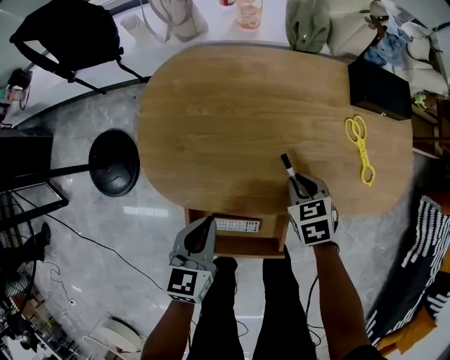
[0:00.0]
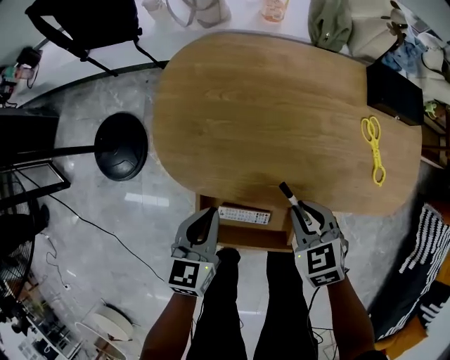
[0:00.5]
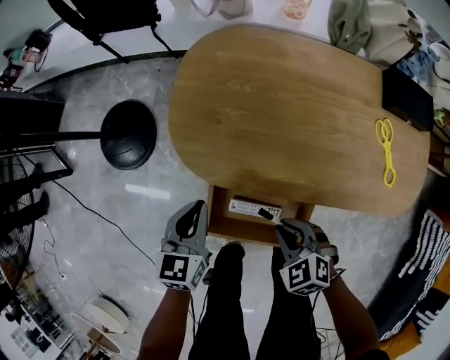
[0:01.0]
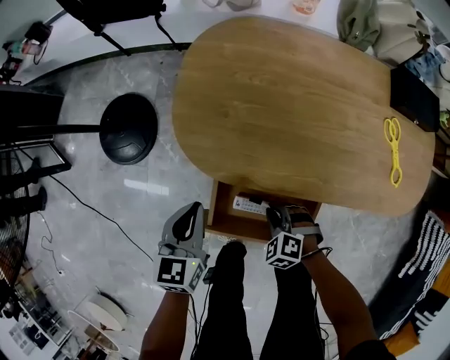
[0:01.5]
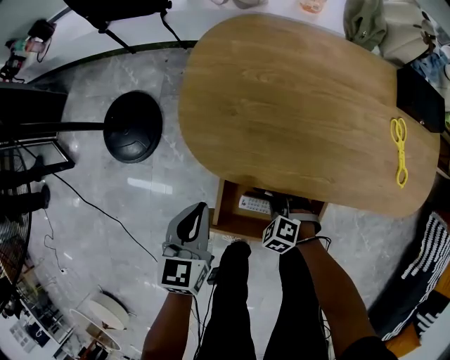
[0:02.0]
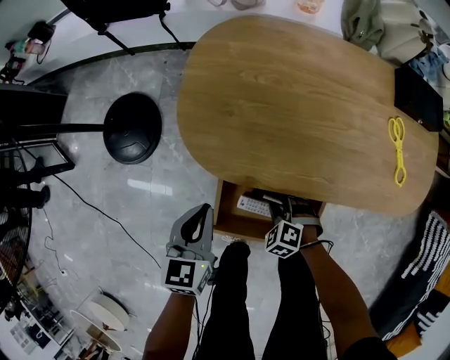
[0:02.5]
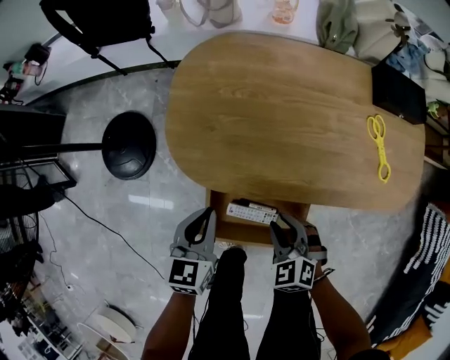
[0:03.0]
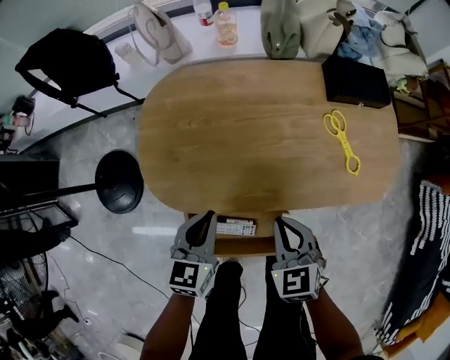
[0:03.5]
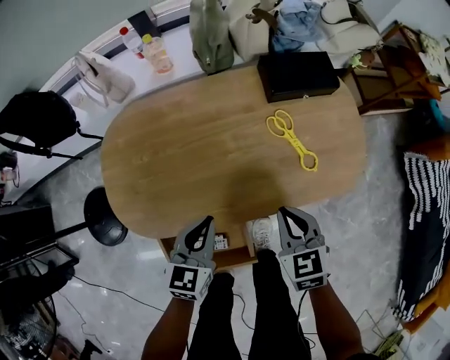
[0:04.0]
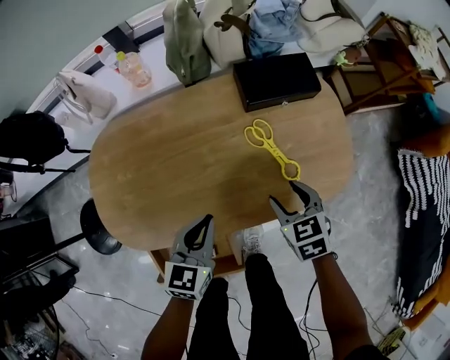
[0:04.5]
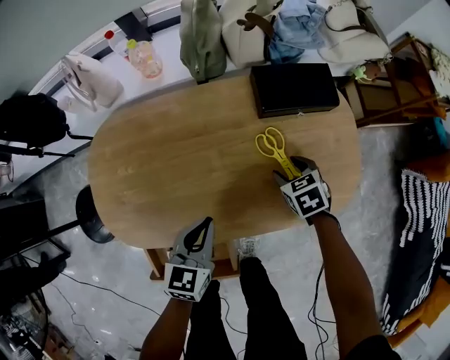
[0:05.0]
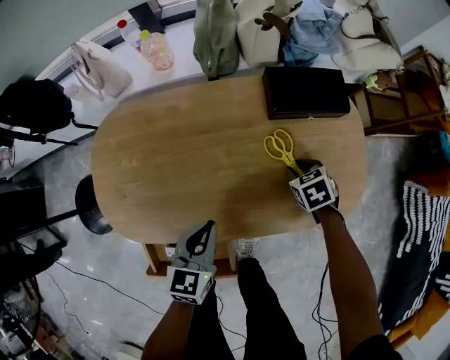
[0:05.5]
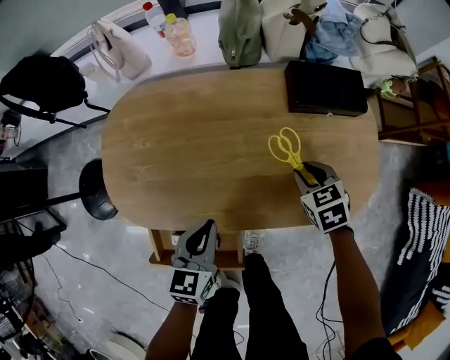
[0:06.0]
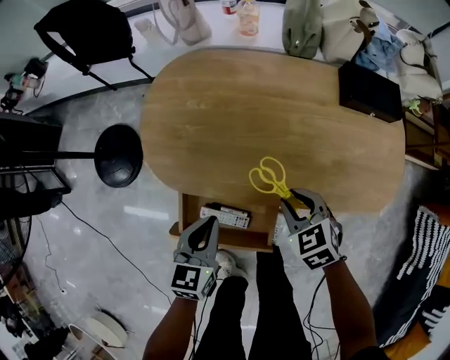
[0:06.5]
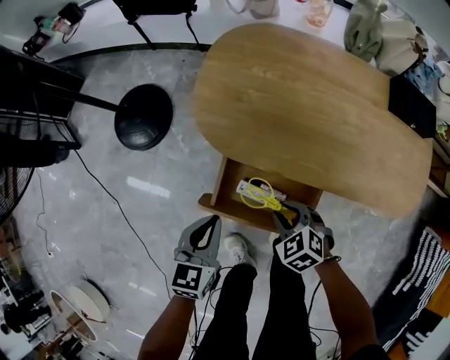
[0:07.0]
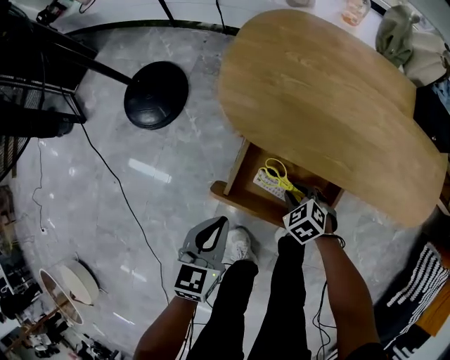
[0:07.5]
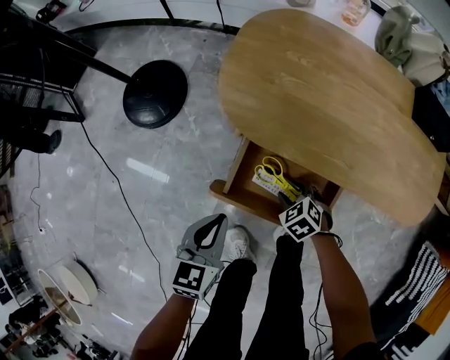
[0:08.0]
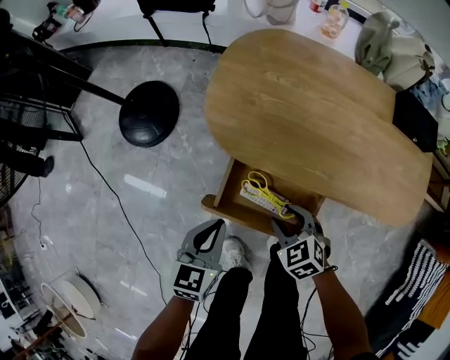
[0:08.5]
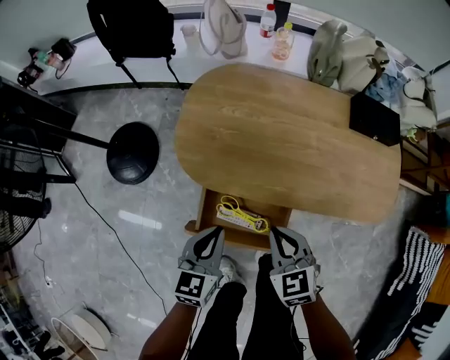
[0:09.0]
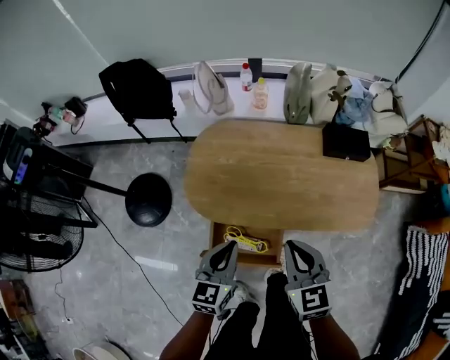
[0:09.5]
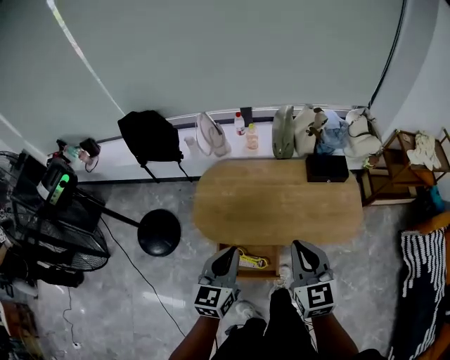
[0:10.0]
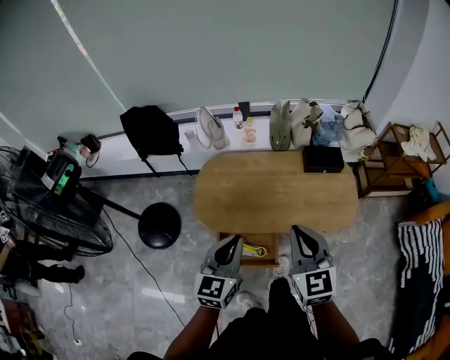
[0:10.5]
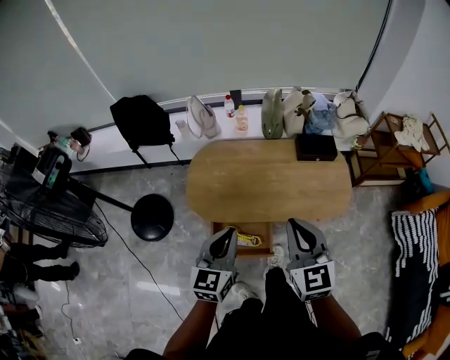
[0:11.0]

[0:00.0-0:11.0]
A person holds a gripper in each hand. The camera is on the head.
0:00.0 to 0:02.0: The right gripper shifts about 25 cm to the left, downward and backward, and twists approximately 50 degrees counterclockwise, seen from behind, while the left gripper moves to the left, roughly 15 cm.
0:02.0 to 0:03.5: The right gripper travels upward and to the right by roughly 30 cm, and rolls clockwise, seen from behind, by about 40 degrees, while the left gripper heads to the right, covering some 15 cm.
0:03.5 to 0:05.5: The left gripper moves to the right and forward, roughly 20 cm. The right gripper heads to the right, forward and downward, covering about 35 cm, and swivels some 30 degrees.
0:05.5 to 0:07.5: The two grippers travel together, about 40 cm. The left gripper turns by about 30 degrees, while the right gripper twists roughly 40 degrees counterclockwise, seen from behind.
0:07.5 to 0:09.0: The left gripper goes approximately 15 cm to the right, upward and forward, while the right gripper shifts about 25 cm upward, and turns by roughly 40 degrees.
0:09.0 to 0:11.0: Both grippers move upward, about 35 cm. The right gripper rotates about 30 degrees; the left gripper changes its angle by roughly 20 degrees.

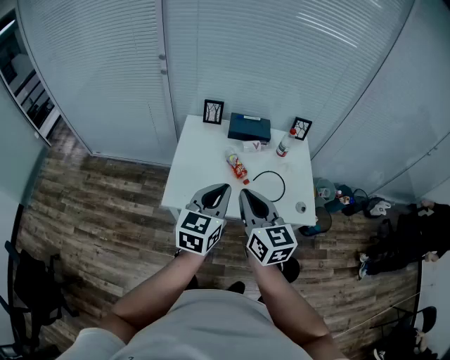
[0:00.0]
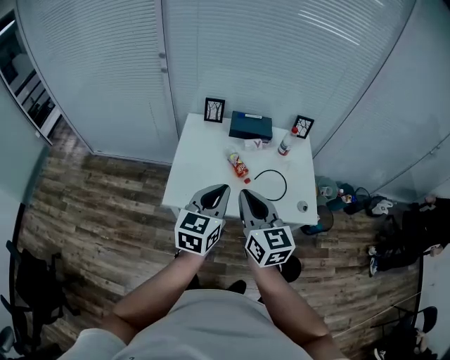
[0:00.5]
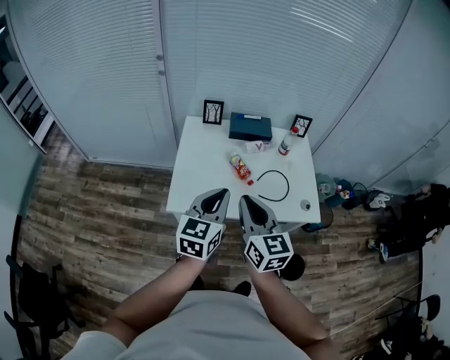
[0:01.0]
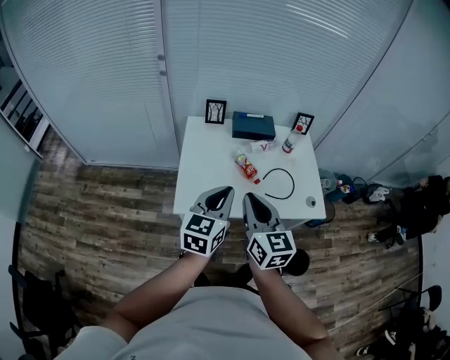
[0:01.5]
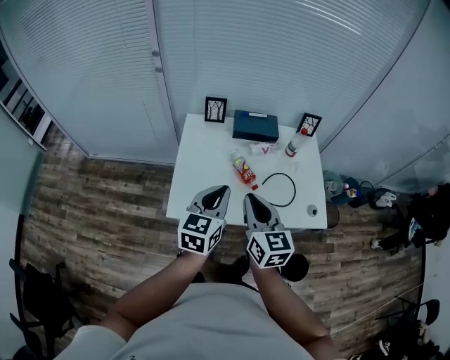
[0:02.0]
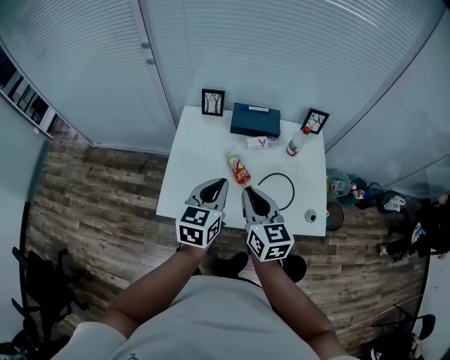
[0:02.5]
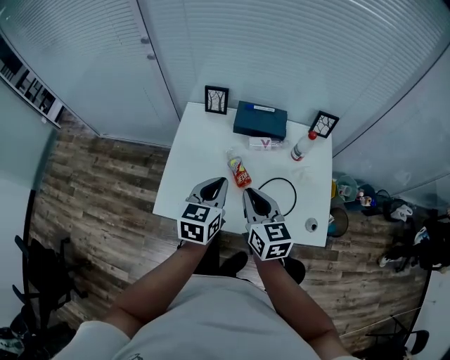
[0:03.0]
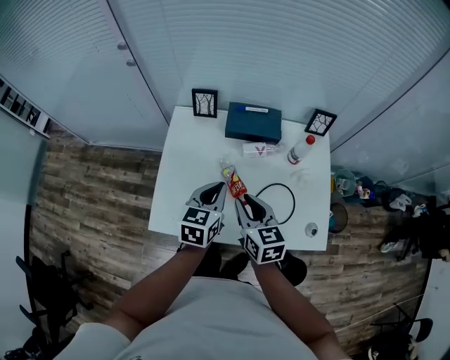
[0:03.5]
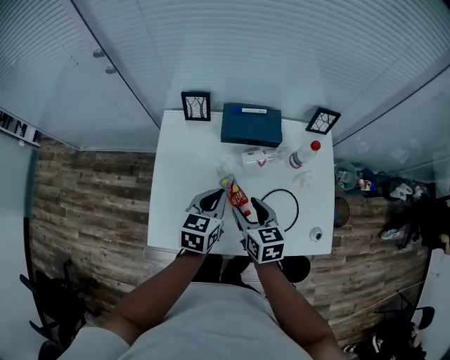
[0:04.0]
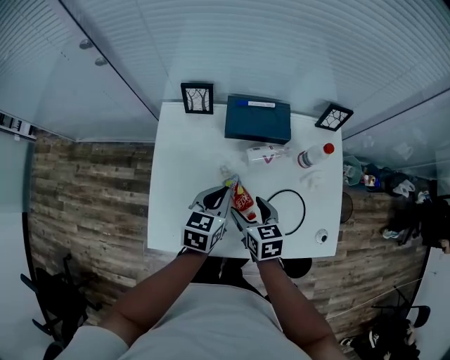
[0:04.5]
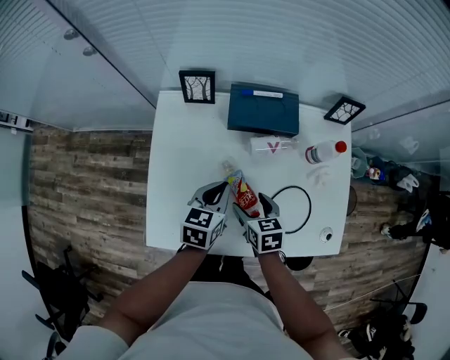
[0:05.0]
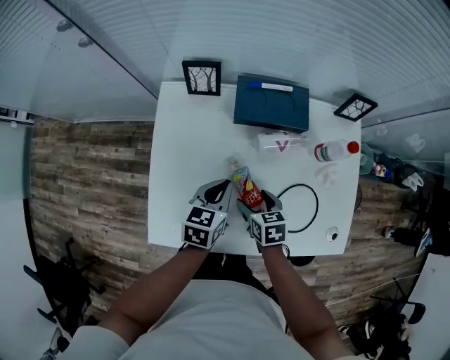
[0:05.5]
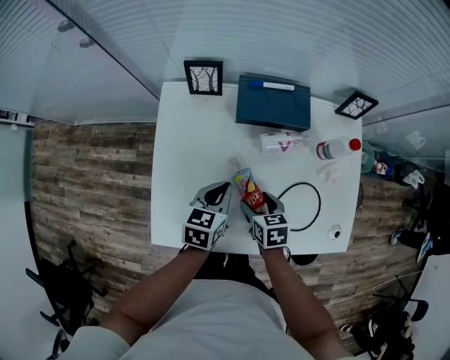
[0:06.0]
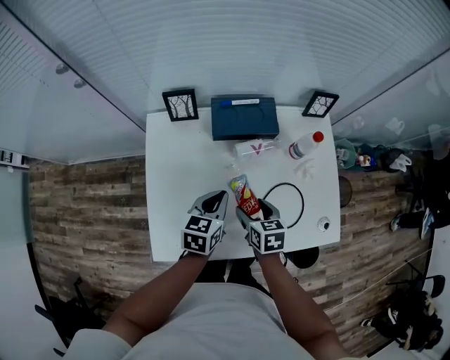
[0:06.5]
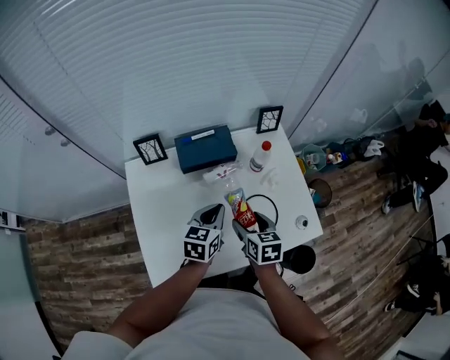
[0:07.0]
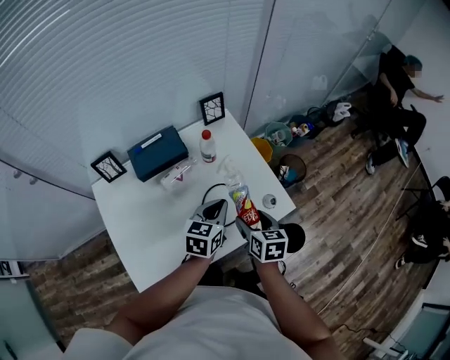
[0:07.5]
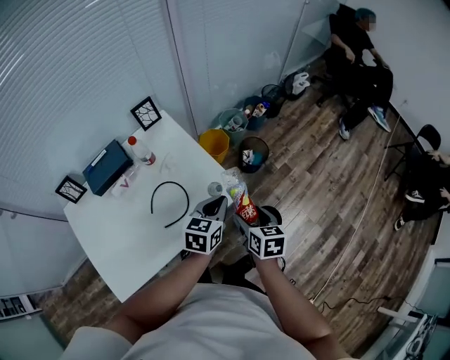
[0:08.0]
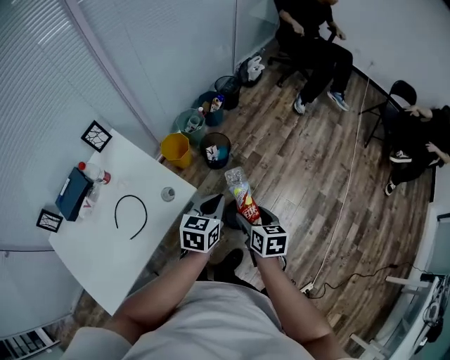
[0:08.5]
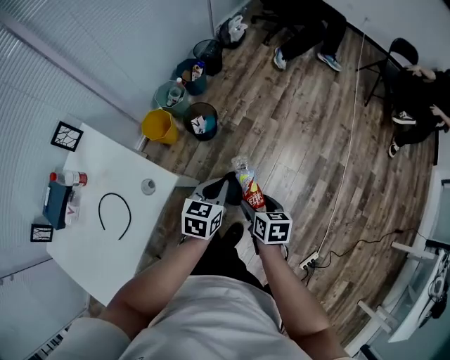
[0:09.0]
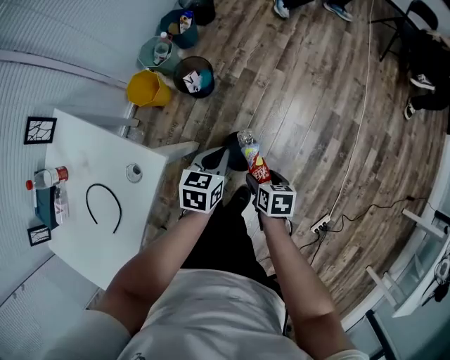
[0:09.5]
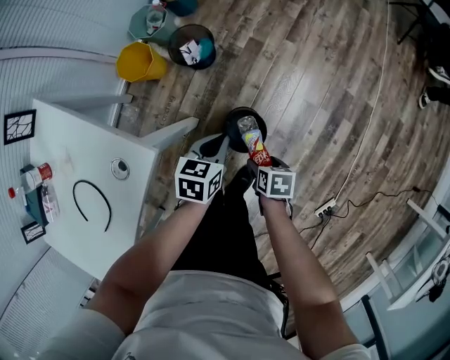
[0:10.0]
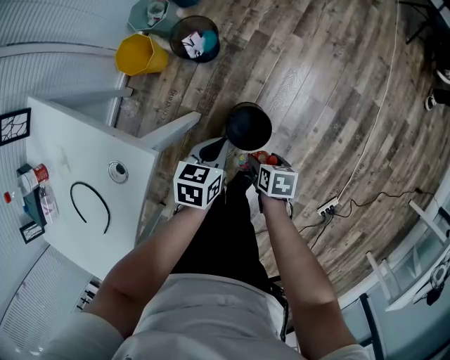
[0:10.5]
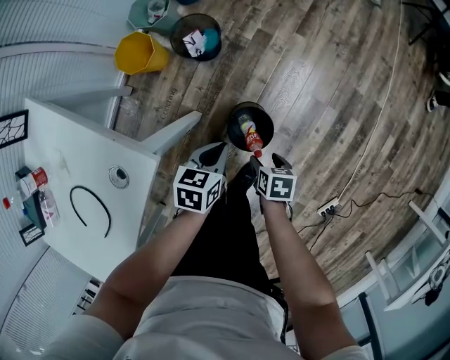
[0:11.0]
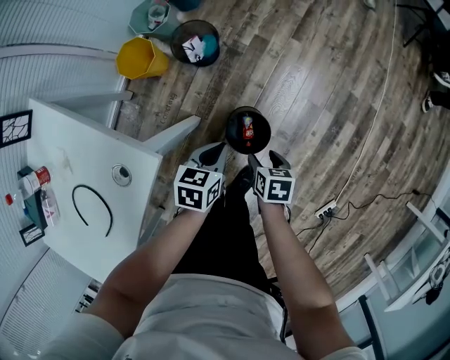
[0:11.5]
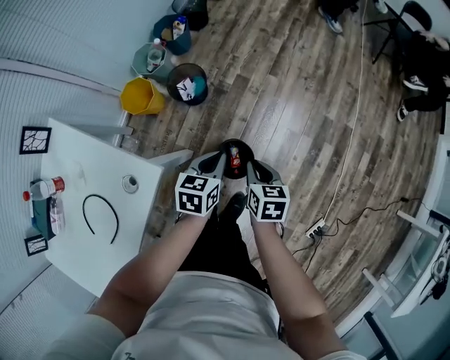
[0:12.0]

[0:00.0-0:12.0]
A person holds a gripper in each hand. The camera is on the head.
0:00.0 to 0:02.0: Both grippers move forward and downward, roughly 10 cm.
0:02.0 to 0:04.0: The grippers both shift forward and downward by some 25 cm. The right gripper rotates some 20 degrees, and opens up.
0:04.0 to 0:06.0: Both grippers move downward, about 10 cm. The right gripper rotates roughly 20 degrees.
0:06.0 to 0:08.0: Both grippers are carried approximately 50 cm. The left gripper turns by roughly 50 degrees. Meanwhile the right gripper changes its angle by some 50 degrees.
0:08.0 to 0:10.0: Both grippers travel together downward and to the right, some 40 cm. The right gripper turns by approximately 40 degrees, while the left gripper swivels approximately 30 degrees.
0:10.0 to 0:12.0: The left gripper heads upward, covering roughly 10 cm. Meanwhile the right gripper heads upward and forward, covering approximately 15 cm, rotates roughly 30 degrees, and closes up.

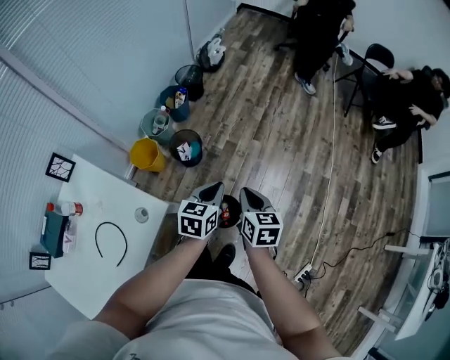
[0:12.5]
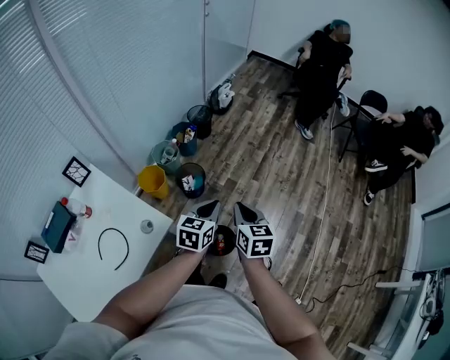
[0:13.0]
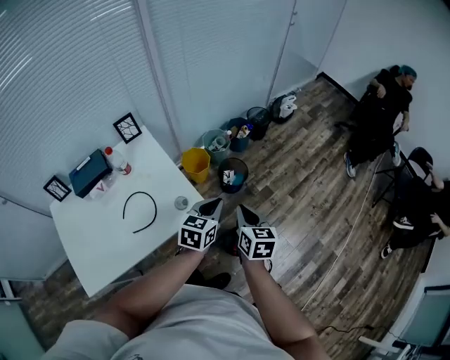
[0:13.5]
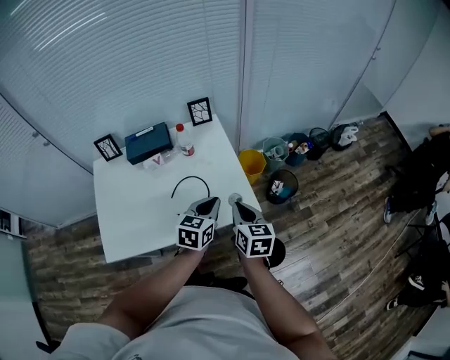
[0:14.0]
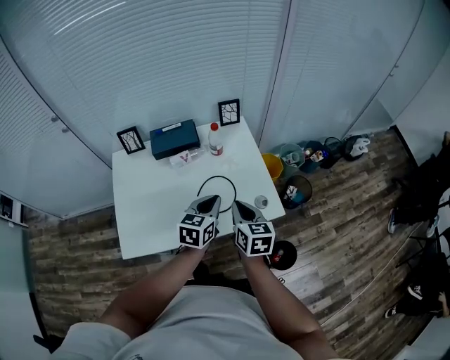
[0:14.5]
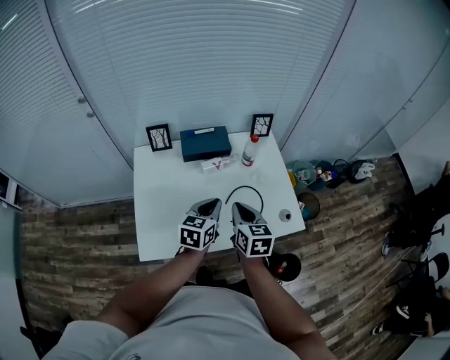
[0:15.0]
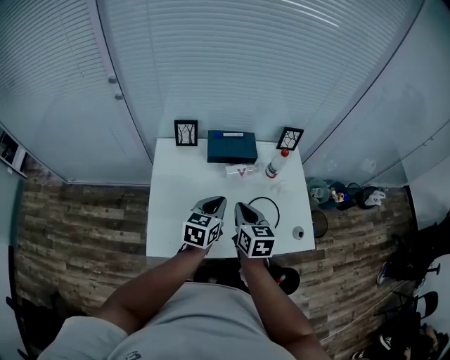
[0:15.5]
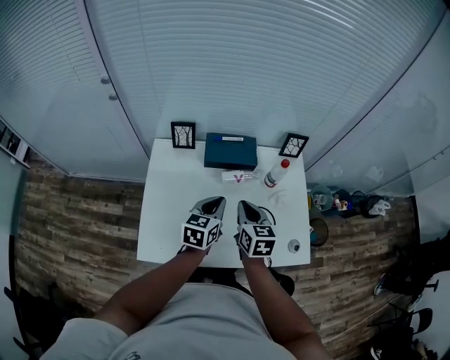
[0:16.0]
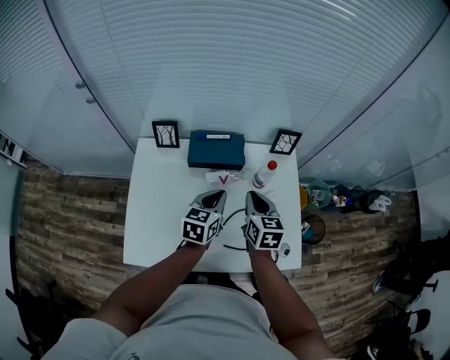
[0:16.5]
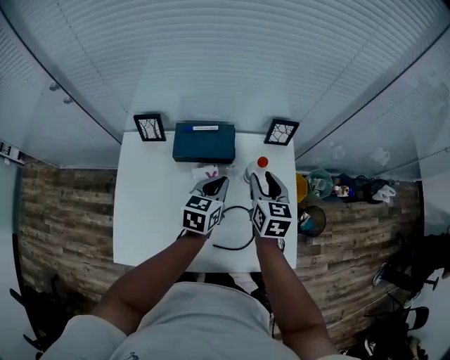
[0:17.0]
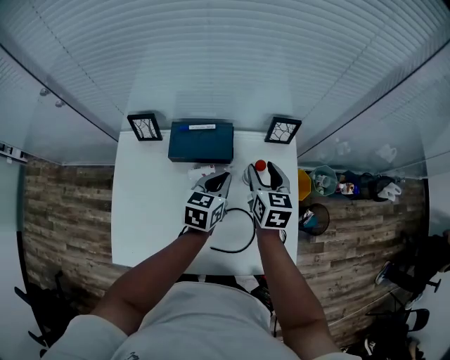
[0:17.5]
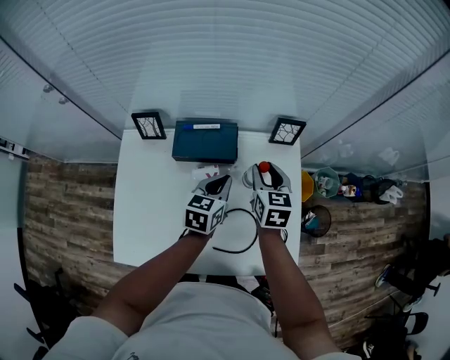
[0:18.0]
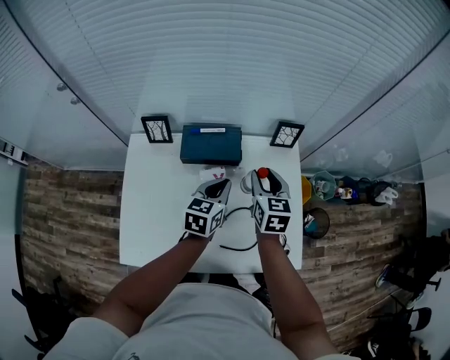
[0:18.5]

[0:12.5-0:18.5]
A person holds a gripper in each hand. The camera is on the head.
0:12.5 to 0:14.5: Both grippers are carried about 50 cm. The left gripper changes its angle by about 50 degrees. Meanwhile the right gripper swivels about 60 degrees.
0:14.5 to 0:16.5: The grippers both shift forward and to the left by roughly 20 cm.
0:16.5 to 0:18.5: The right gripper moves forward, about 10 cm, and opens its fingers; the left gripper shifts some 5 cm forward.
